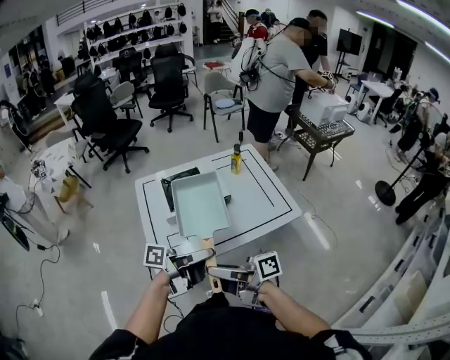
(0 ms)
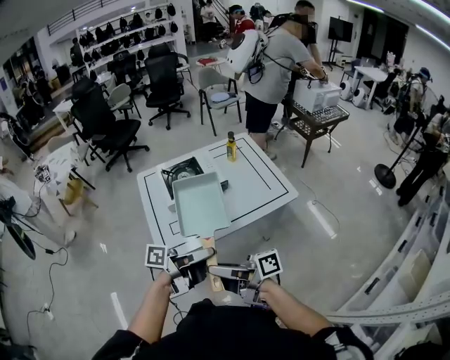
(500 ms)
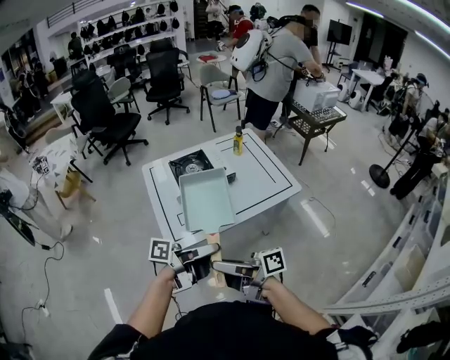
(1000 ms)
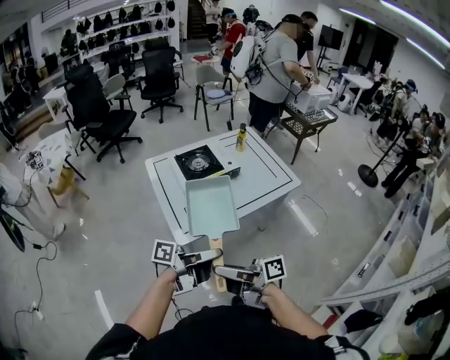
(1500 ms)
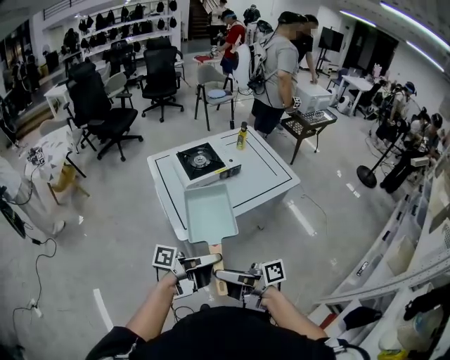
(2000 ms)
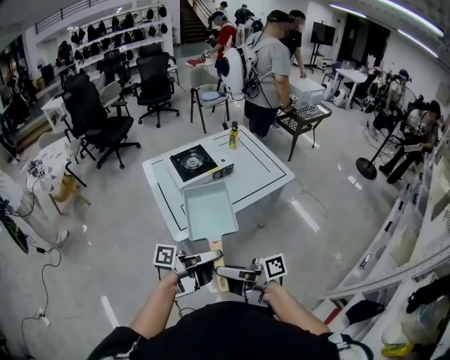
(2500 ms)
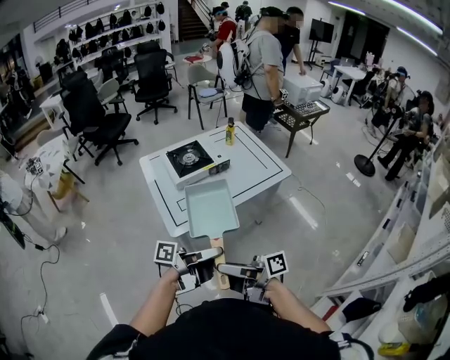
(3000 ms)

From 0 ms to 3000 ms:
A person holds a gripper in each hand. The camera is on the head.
From 0 ms to 1500 ms: The right gripper moves approximately 20 cm. Meanwhile the left gripper changes place by some 20 cm.
From 1500 ms to 3000 ms: The right gripper changes place by some 5 cm; the left gripper changes place by roughly 5 cm.

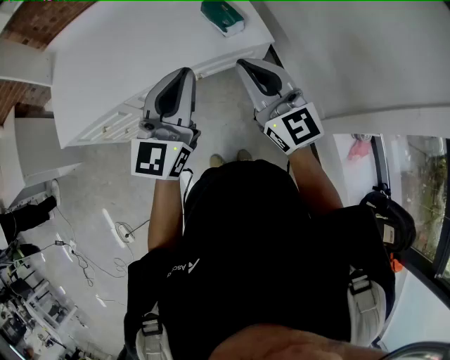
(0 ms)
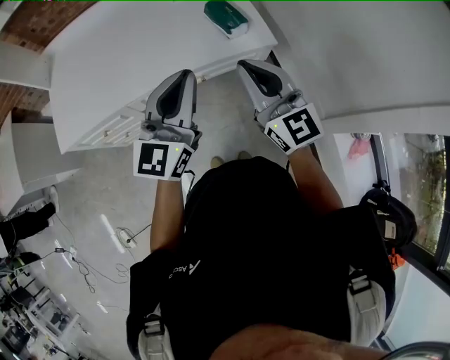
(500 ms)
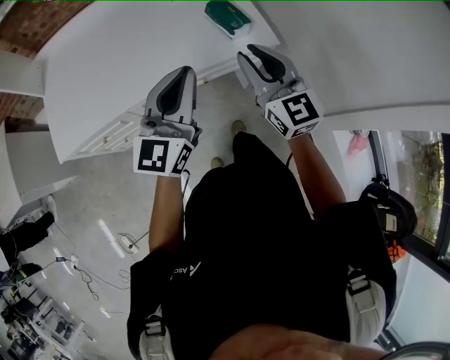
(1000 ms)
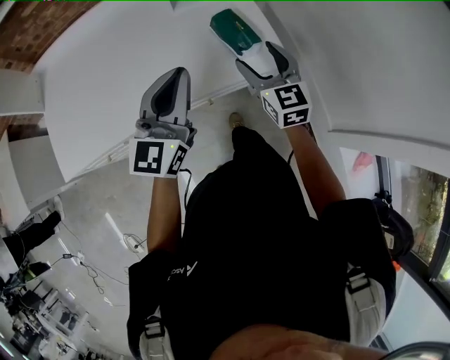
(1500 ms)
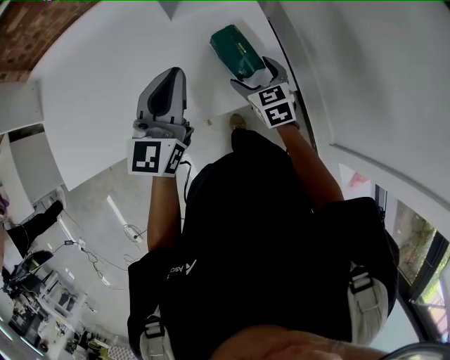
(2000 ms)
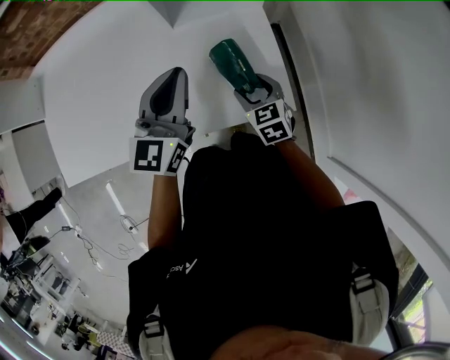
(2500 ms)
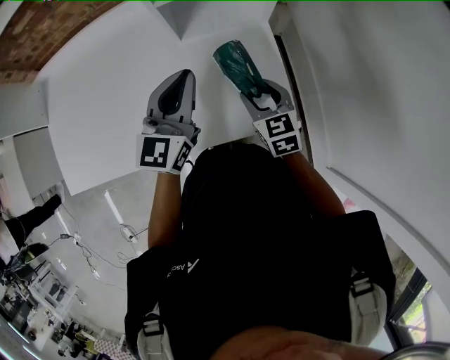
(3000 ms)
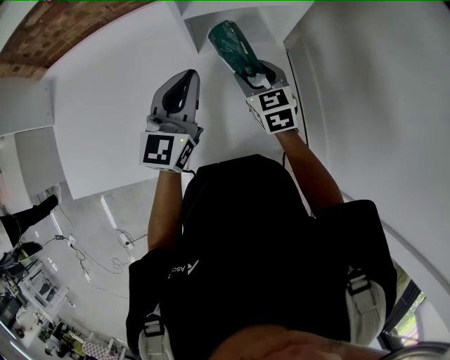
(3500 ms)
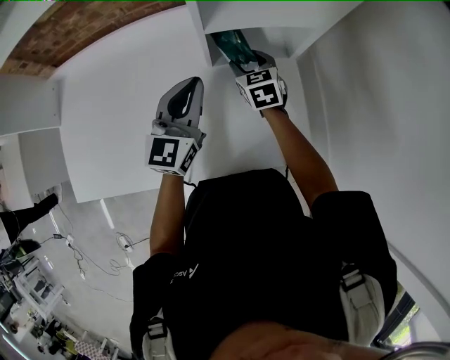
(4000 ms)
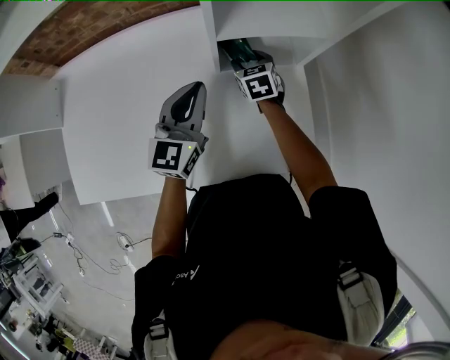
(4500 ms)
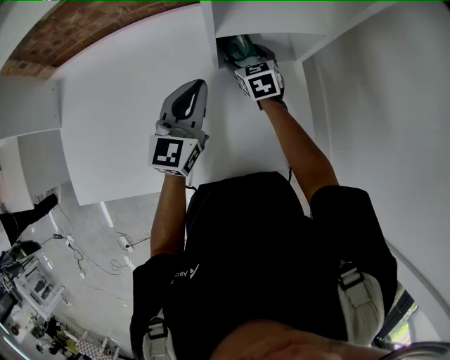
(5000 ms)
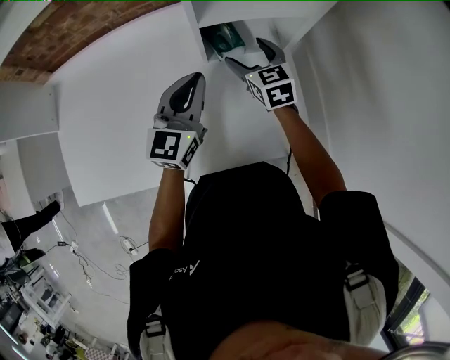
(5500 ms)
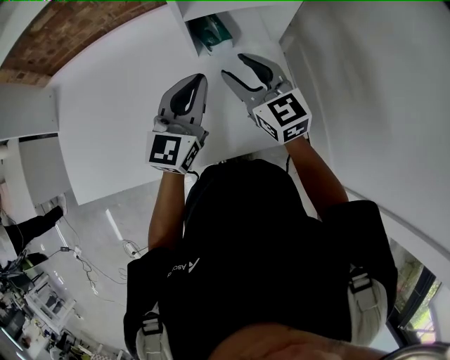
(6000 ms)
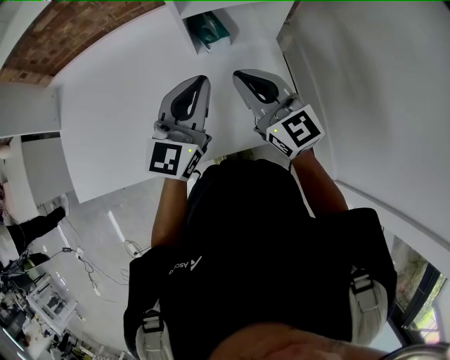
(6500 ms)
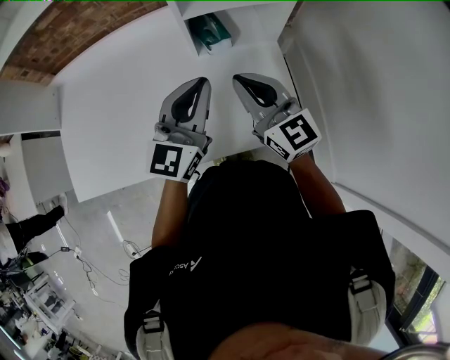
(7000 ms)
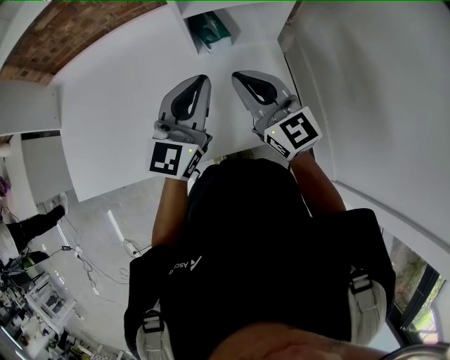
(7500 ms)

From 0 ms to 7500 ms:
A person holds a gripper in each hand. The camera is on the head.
From 0 ms to 2000 ms: The right gripper travels forward and downward by about 40 cm, tilts its fingers about 40 degrees downward, and opens; the left gripper moves forward, roughly 30 cm.
From 2000 ms to 4000 ms: The right gripper is displaced forward and to the left by about 30 cm, and closes. The left gripper travels forward and to the left by roughly 20 cm.
From 4000 ms to 5500 ms: The right gripper is displaced upward by roughly 5 cm, and opens its fingers.
From 5500 ms to 7500 ms: The right gripper is displaced backward and upward by about 20 cm, changes its angle by roughly 30 degrees, and closes its fingers. The left gripper goes some 10 cm backward and upward.

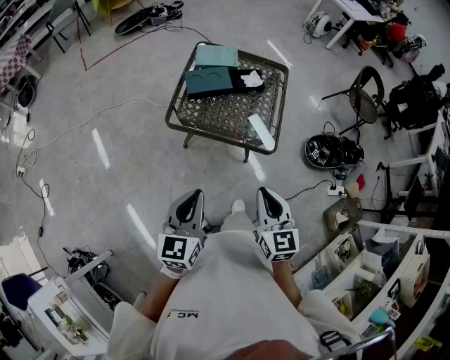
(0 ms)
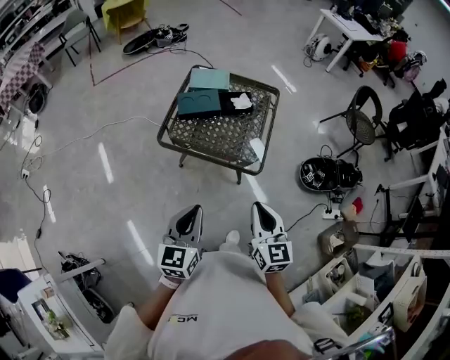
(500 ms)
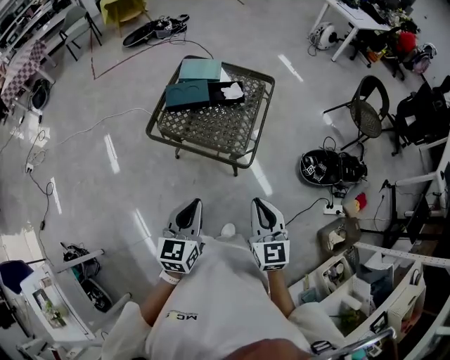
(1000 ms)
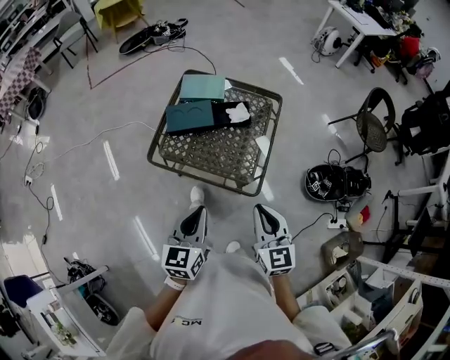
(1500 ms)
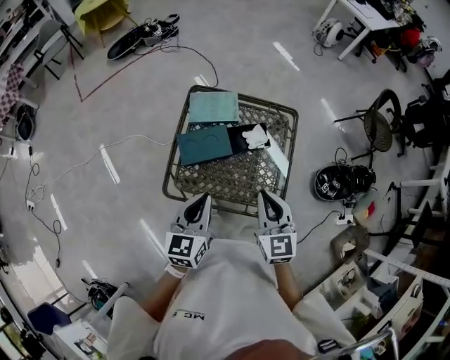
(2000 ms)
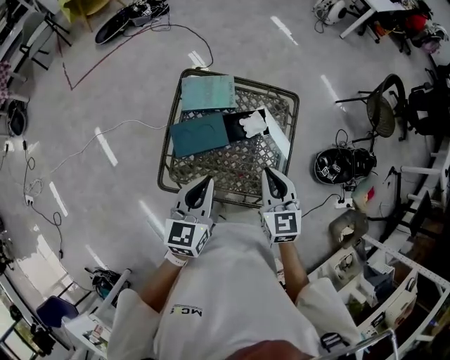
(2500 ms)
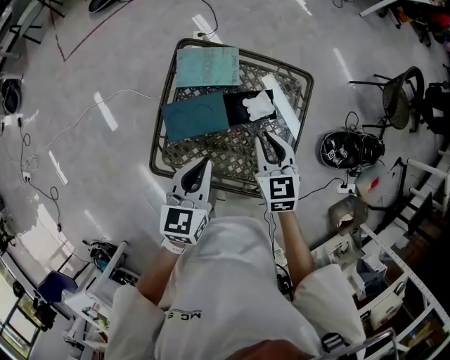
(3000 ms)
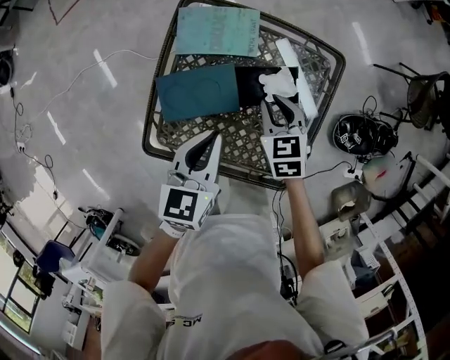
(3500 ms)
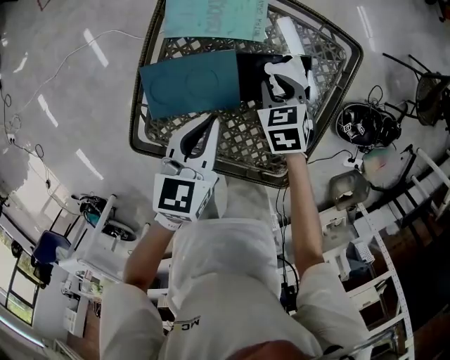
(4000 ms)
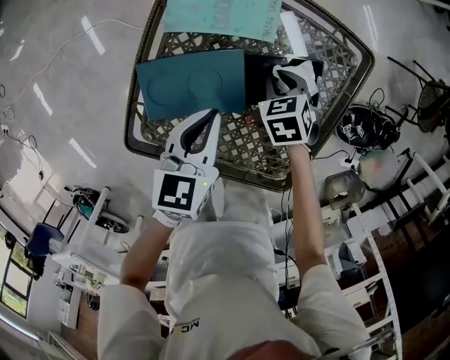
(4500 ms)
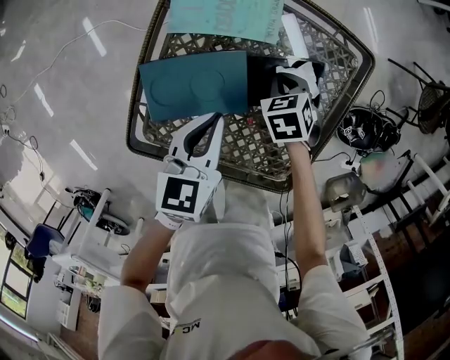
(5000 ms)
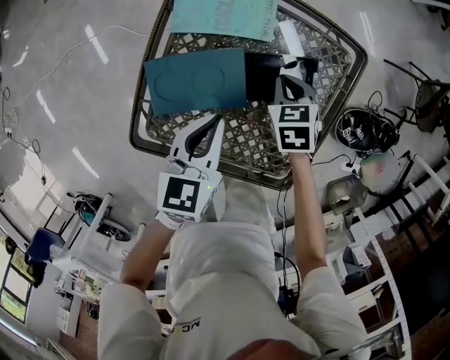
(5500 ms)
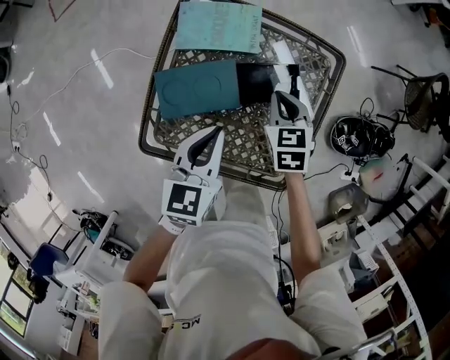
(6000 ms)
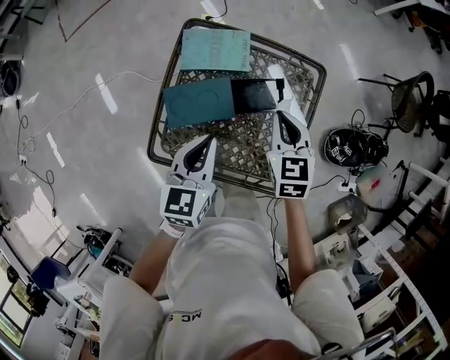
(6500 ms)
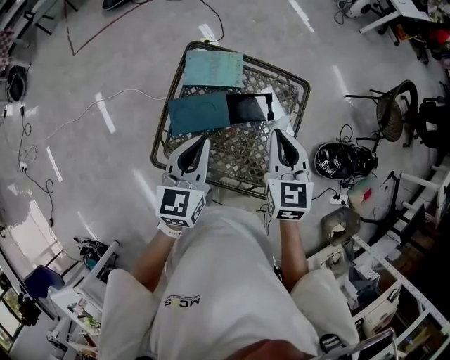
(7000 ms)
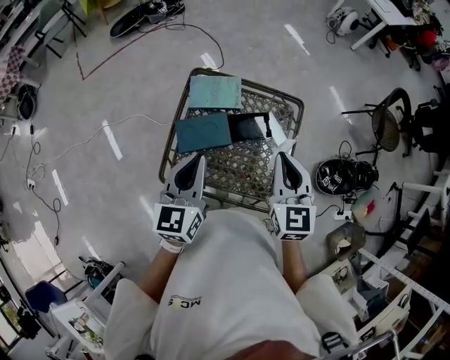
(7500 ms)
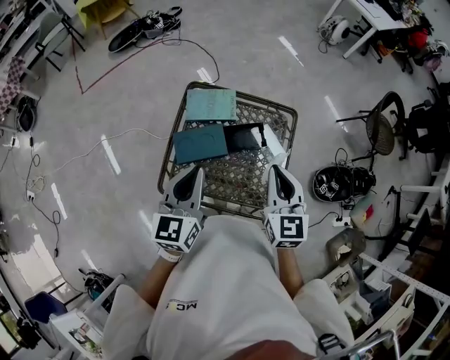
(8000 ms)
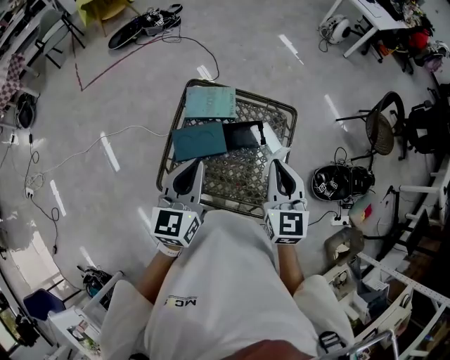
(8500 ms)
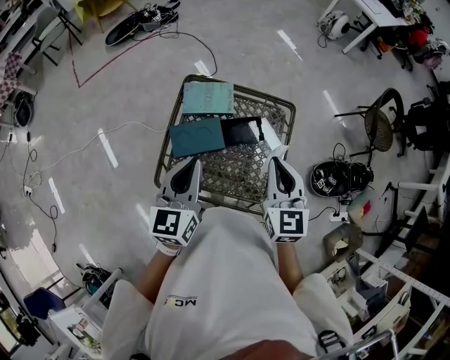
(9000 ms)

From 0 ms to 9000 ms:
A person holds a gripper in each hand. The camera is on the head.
From 0 ms to 2000 ms: The grippers both shift forward by roughly 35 cm.
From 2000 ms to 4500 ms: The two grippers go approximately 40 cm downward and forward. The right gripper tilts its fingers some 50 degrees downward.
From 4500 ms to 7000 ms: The right gripper shifts about 35 cm upward, and angles its fingers upward, by about 40 degrees, while the left gripper travels upward by approximately 25 cm.
From 7000 ms to 9000 ms: The left gripper heads upward, covering roughly 5 cm, while the right gripper shifts roughly 10 cm upward and backward.

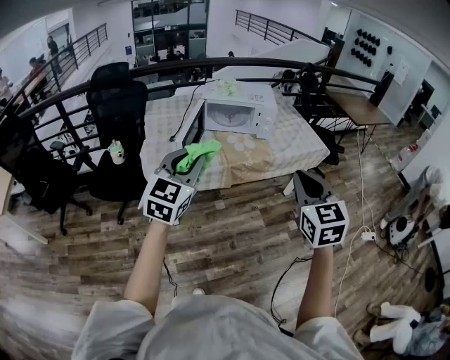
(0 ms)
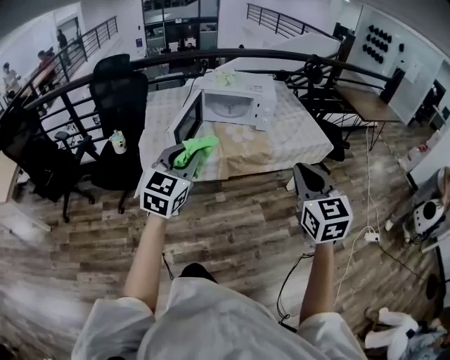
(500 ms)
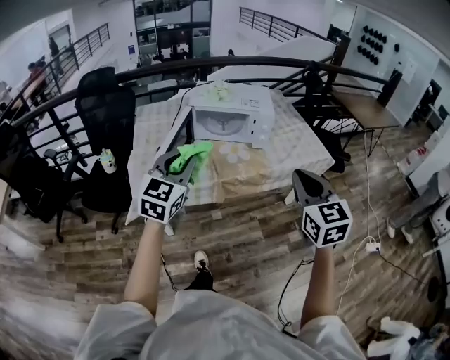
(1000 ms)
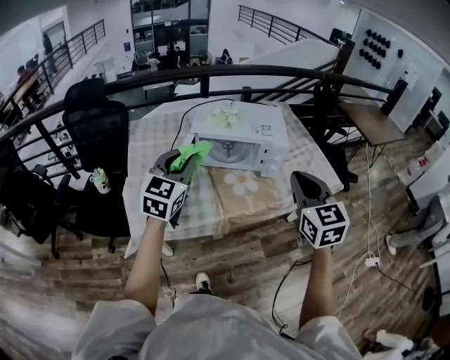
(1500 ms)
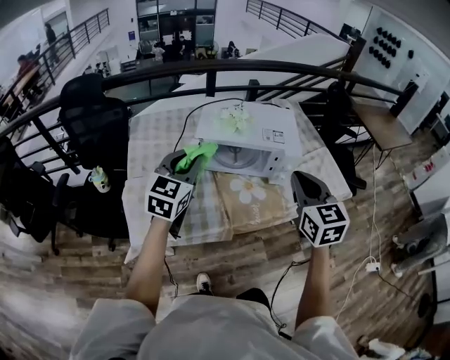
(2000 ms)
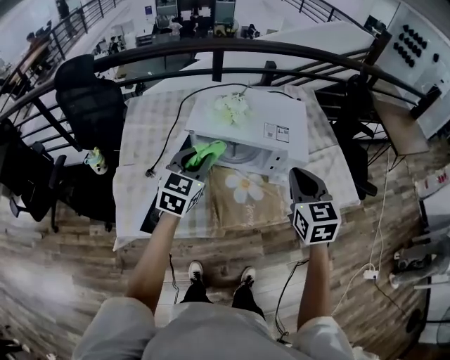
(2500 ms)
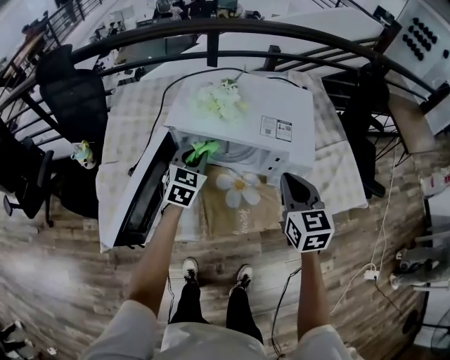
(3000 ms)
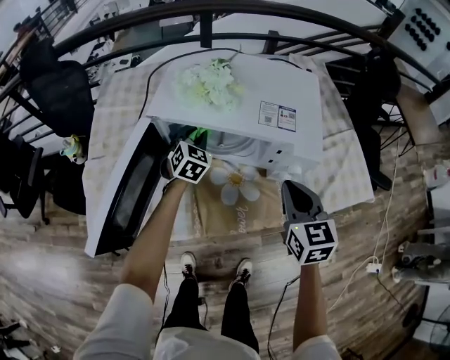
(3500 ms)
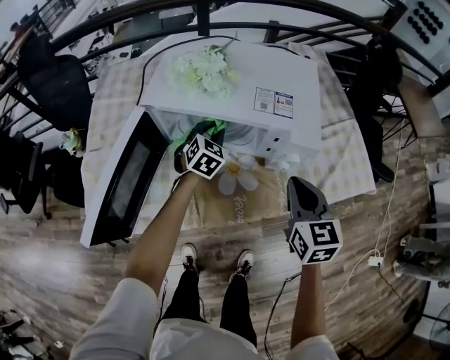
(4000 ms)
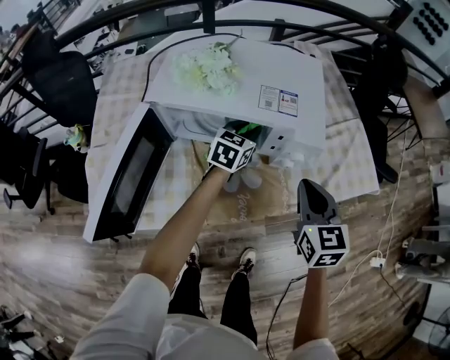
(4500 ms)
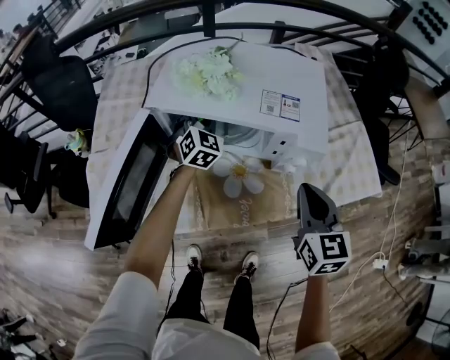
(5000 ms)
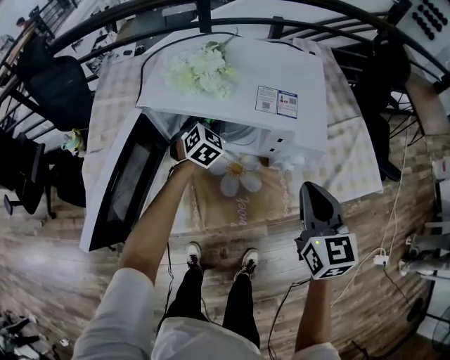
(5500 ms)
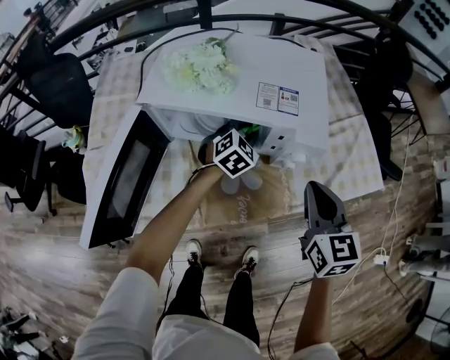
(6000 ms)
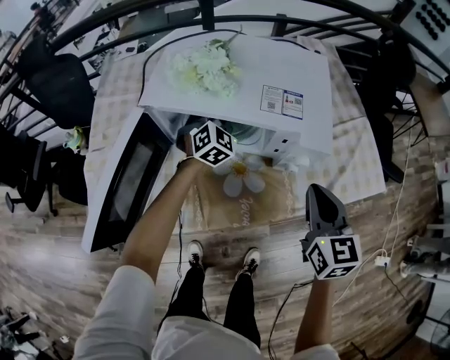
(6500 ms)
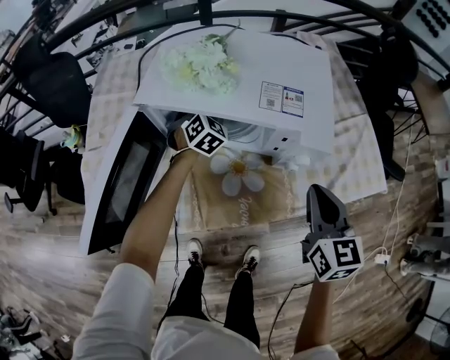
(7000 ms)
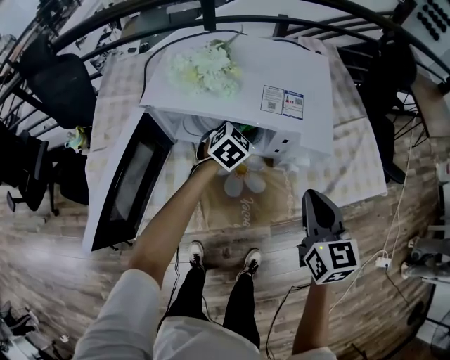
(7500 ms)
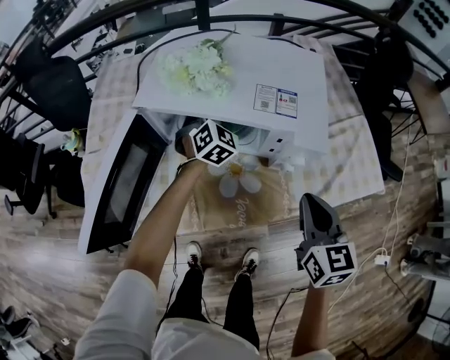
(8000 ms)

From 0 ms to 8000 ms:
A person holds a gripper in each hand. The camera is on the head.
From 0 ms to 2000 ms: The pair of grippers is taken forward, about 40 cm.
From 2000 ms to 4000 ms: The left gripper is displaced downward, forward and to the right by about 40 cm, and turns by some 30 degrees, while the right gripper heads downward, forward and to the right, covering approximately 30 cm.
From 4000 ms to 6000 ms: The left gripper moves left and right over approximately 15 cm, changing direction 2 times.
From 6000 ms to 8000 ms: The left gripper moves left and right over some 15 cm, changing direction 2 times, and changes its angle by approximately 20 degrees.
